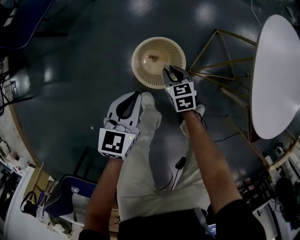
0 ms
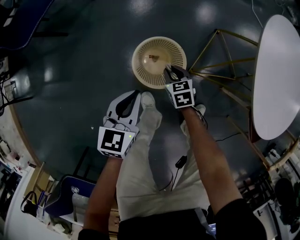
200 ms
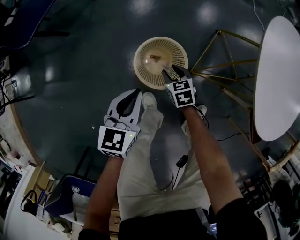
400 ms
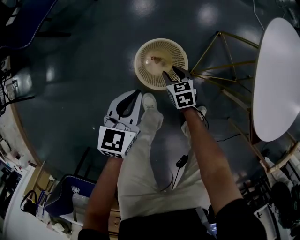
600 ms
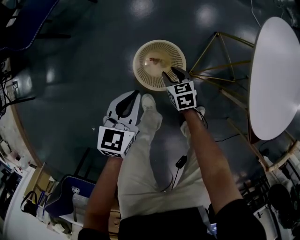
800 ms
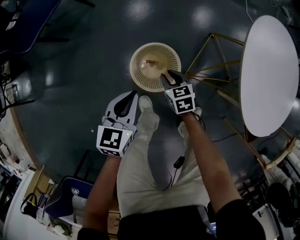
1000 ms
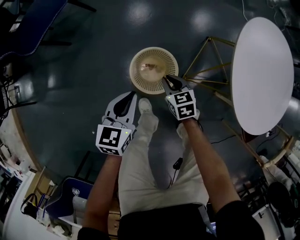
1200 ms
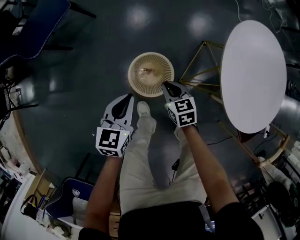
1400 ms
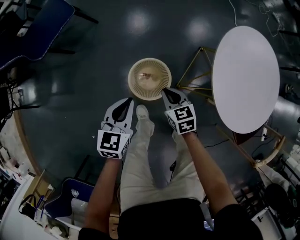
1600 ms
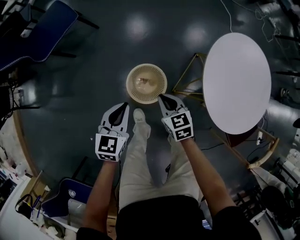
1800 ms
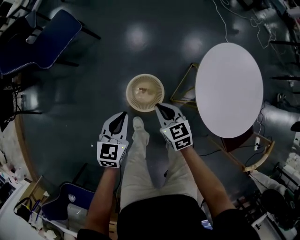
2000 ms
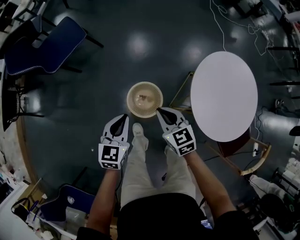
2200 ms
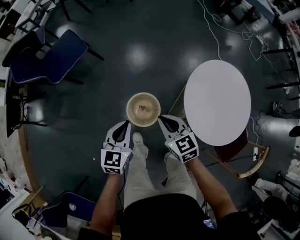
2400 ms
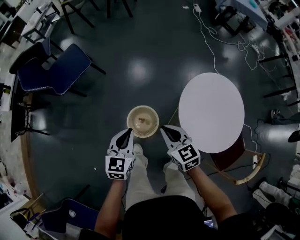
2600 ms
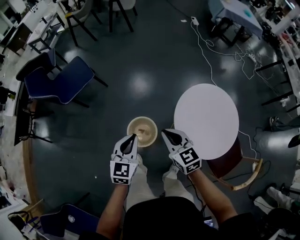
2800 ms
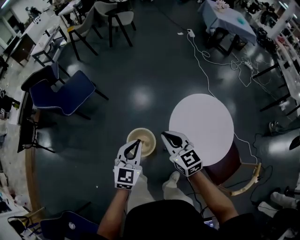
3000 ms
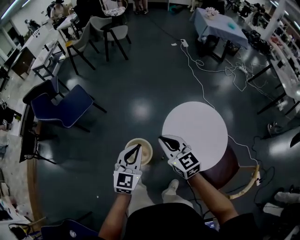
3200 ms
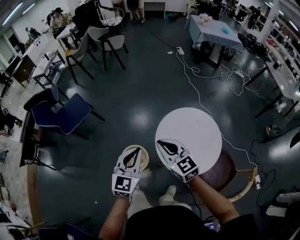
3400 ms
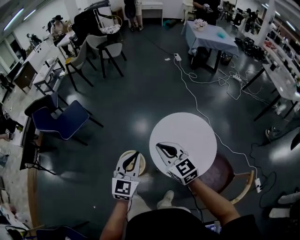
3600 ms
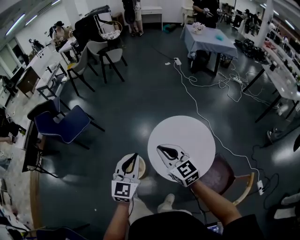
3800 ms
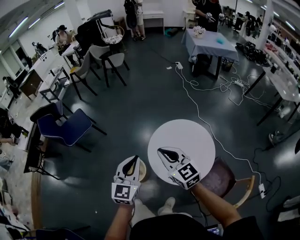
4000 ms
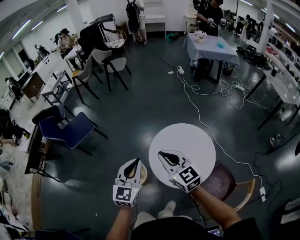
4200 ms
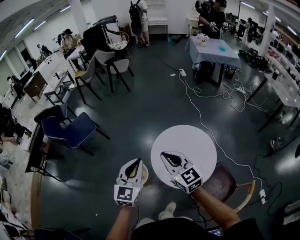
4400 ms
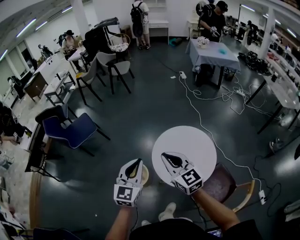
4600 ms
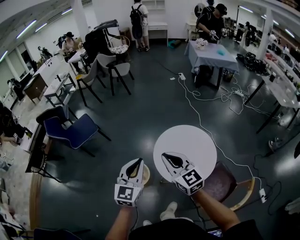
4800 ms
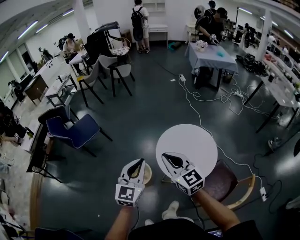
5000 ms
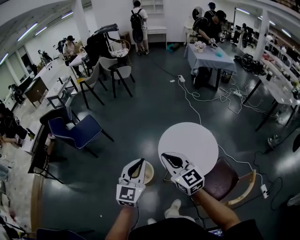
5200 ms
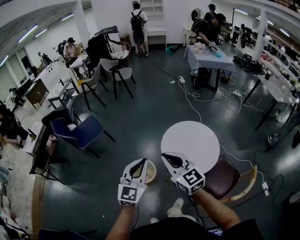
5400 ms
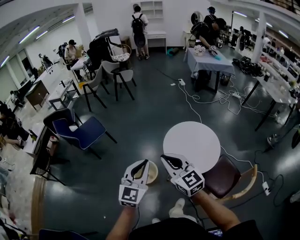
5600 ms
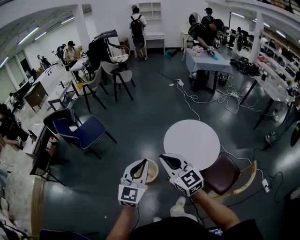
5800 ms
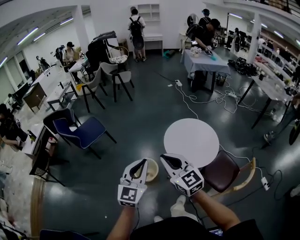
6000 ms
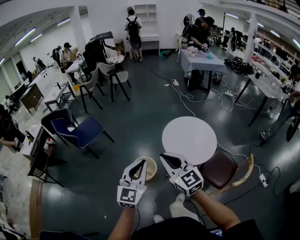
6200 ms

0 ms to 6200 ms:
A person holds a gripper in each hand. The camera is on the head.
0 ms to 1600 ms: The two grippers go approximately 15 cm upward. The right gripper opens, then closes once more.
1600 ms to 3200 ms: The right gripper heads upward, covering approximately 50 cm, and rotates roughly 30 degrees; the left gripper travels upward and to the right by roughly 50 cm, and swivels about 30 degrees.
3200 ms to 4600 ms: The grippers both shift to the right, backward and upward by roughly 20 cm.
4600 ms to 6200 ms: Both grippers travel together backward and to the left, roughly 30 cm.

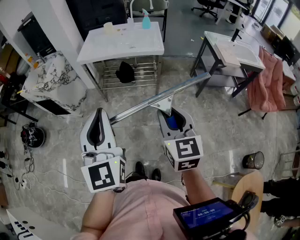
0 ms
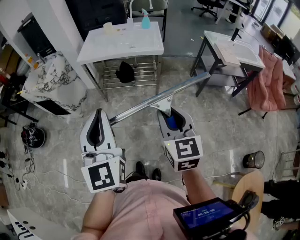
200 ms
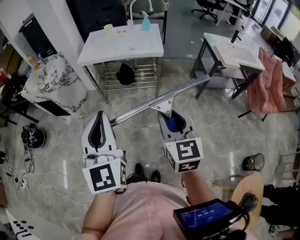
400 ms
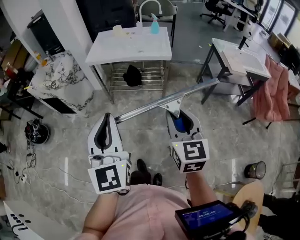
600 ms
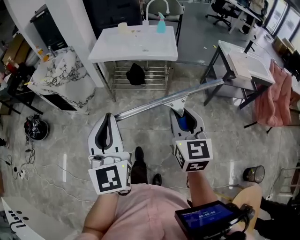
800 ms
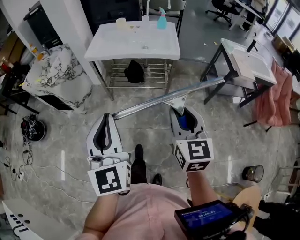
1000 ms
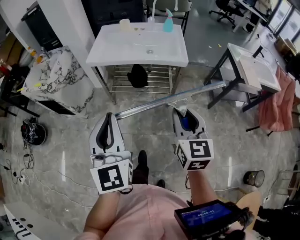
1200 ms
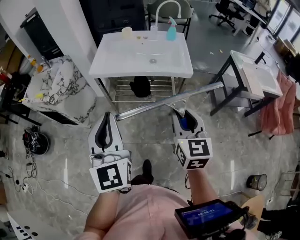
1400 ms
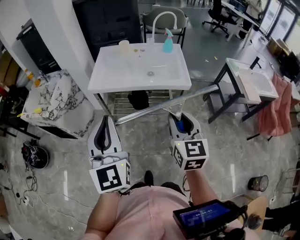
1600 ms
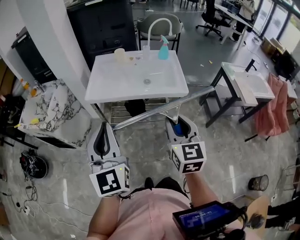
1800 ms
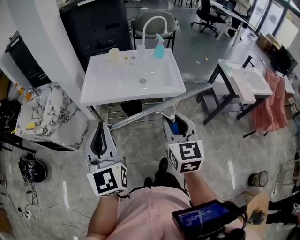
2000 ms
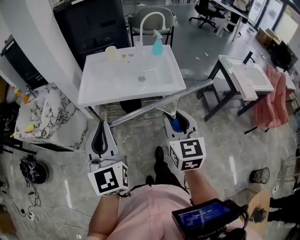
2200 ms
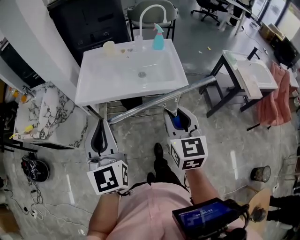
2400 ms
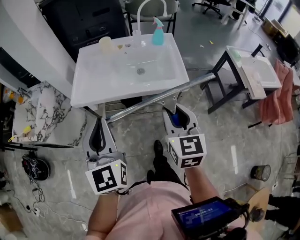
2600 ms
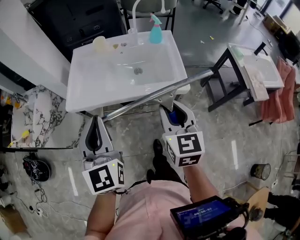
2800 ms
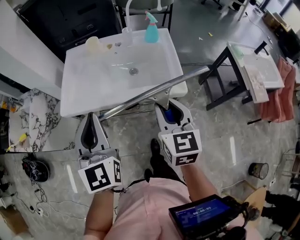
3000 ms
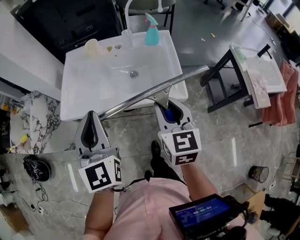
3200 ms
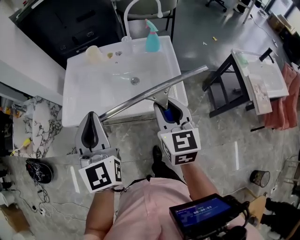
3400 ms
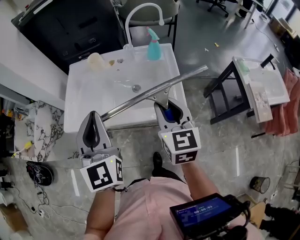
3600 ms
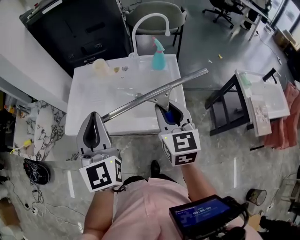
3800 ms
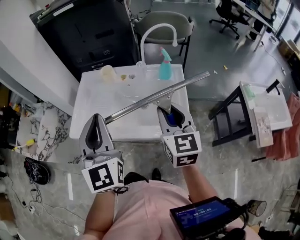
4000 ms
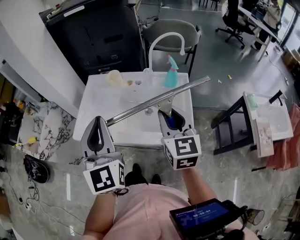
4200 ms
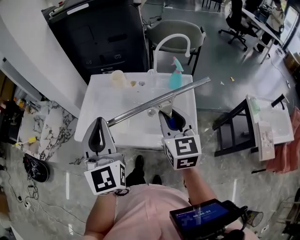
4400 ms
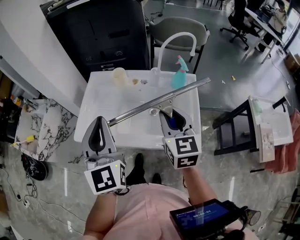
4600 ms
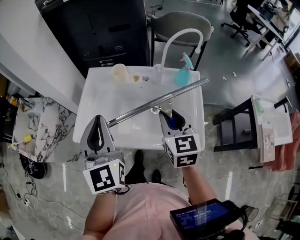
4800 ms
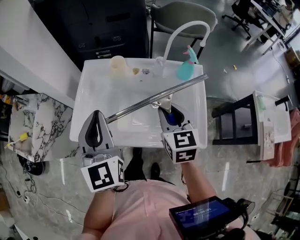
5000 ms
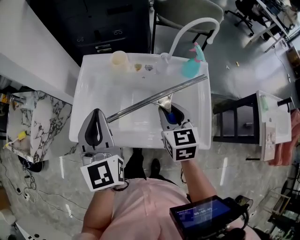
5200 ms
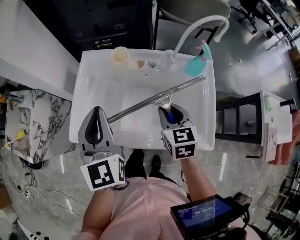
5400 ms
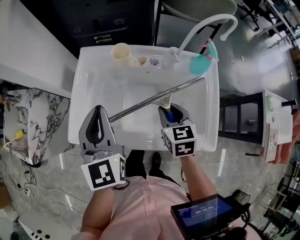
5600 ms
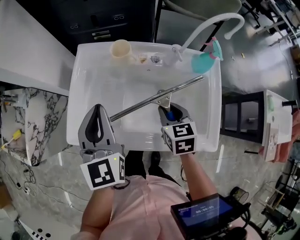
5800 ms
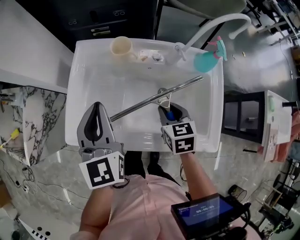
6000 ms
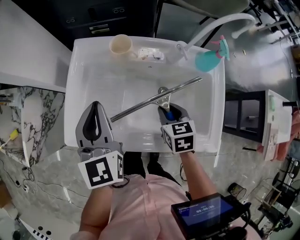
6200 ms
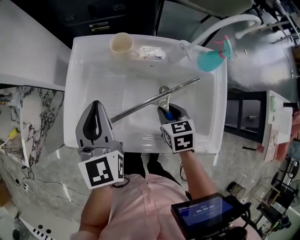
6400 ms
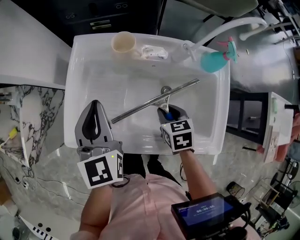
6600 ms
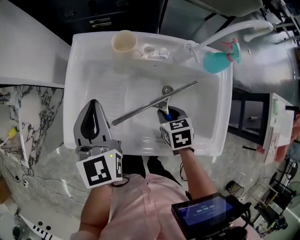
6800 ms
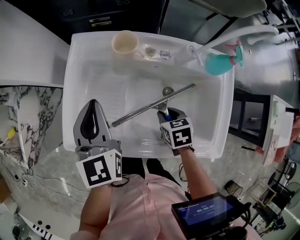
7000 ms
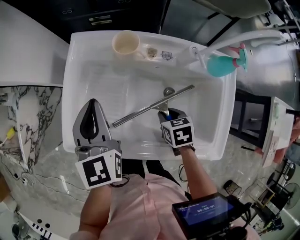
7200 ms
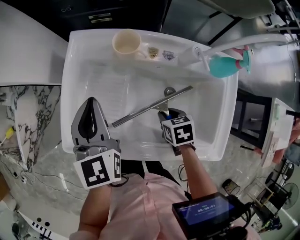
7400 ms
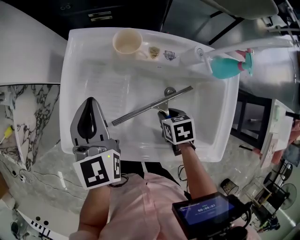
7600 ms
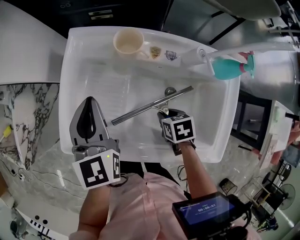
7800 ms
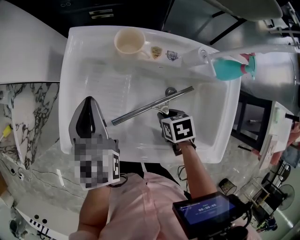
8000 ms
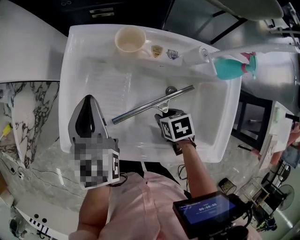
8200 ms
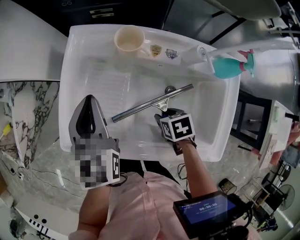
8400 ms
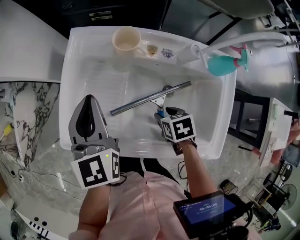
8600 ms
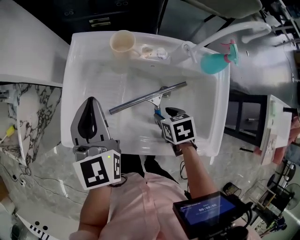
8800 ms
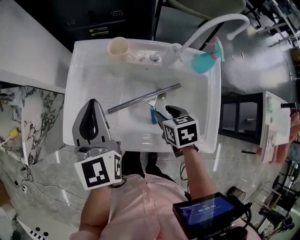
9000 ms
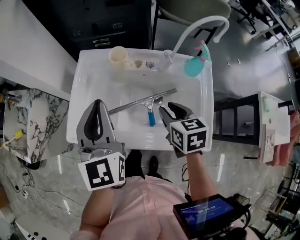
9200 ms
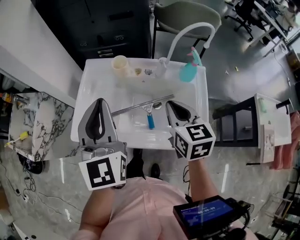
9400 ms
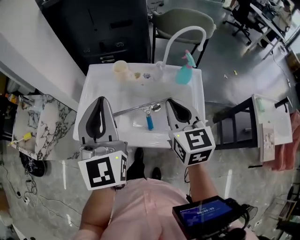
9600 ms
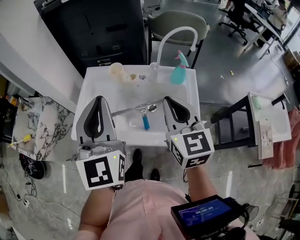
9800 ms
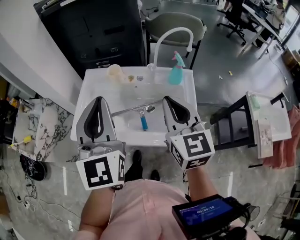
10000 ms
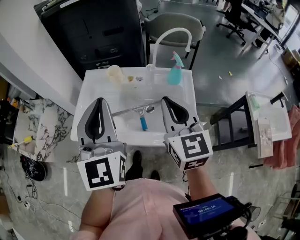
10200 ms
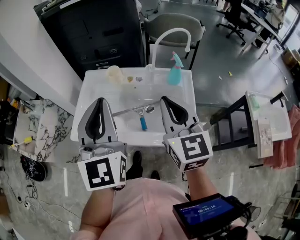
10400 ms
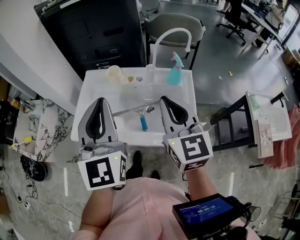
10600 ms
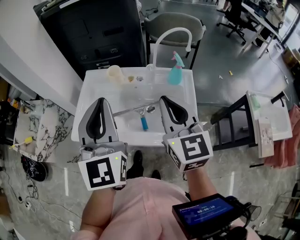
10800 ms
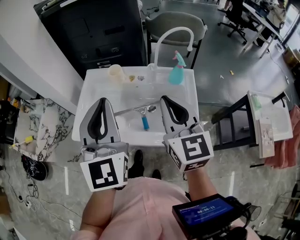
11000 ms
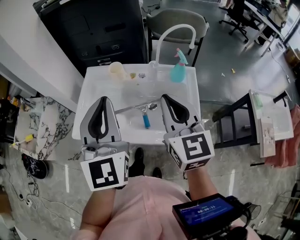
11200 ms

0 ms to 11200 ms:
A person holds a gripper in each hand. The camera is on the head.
0 ms to 1600 ms: The grippers both shift forward by approximately 30 cm.
1600 ms to 3200 ms: The two grippers go about 25 cm forward.
3200 ms to 4800 ms: The grippers both shift forward by some 15 cm.
4800 ms to 6400 ms: The left gripper moves downward and forward, about 20 cm. The right gripper moves downward, some 20 cm, and rotates approximately 30 degrees.
6400 ms to 8000 ms: The right gripper moves downward, approximately 10 cm, and changes its angle by roughly 30 degrees, while the left gripper shifts approximately 5 cm forward.
8000 ms to 9600 ms: The right gripper is displaced upward by approximately 35 cm, tips its fingers upward by roughly 50 degrees, and closes its fingers. Meanwhile the left gripper goes roughly 25 cm upward, and rotates approximately 30 degrees.
9600 ms to 11200 ms: The right gripper is displaced upward by approximately 5 cm.

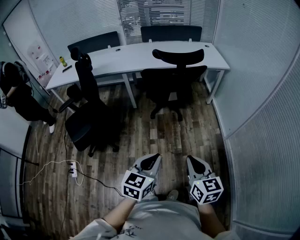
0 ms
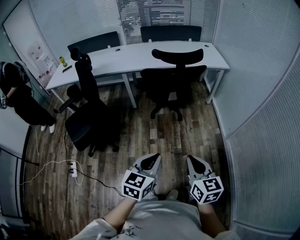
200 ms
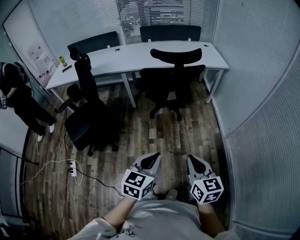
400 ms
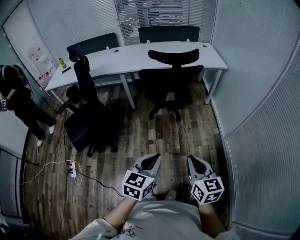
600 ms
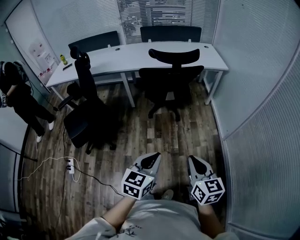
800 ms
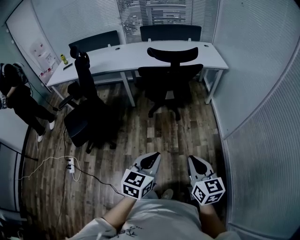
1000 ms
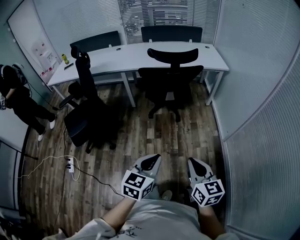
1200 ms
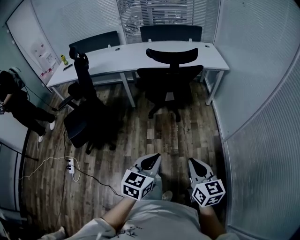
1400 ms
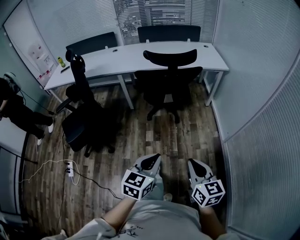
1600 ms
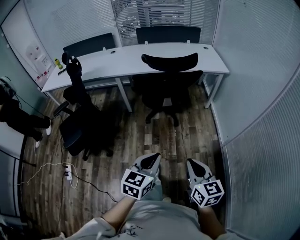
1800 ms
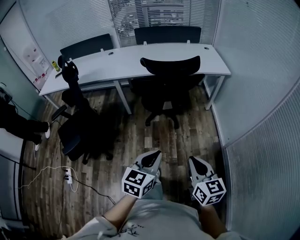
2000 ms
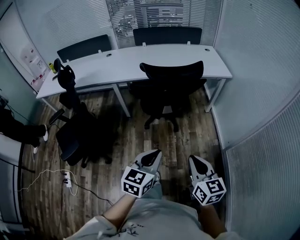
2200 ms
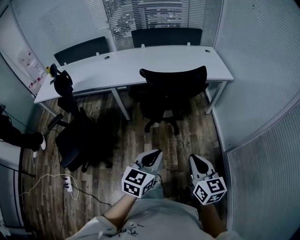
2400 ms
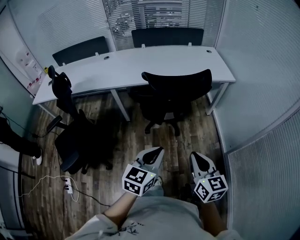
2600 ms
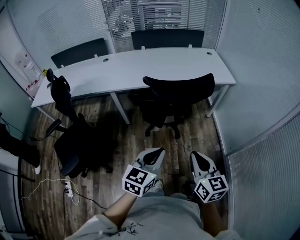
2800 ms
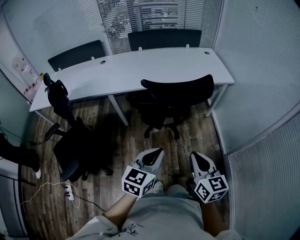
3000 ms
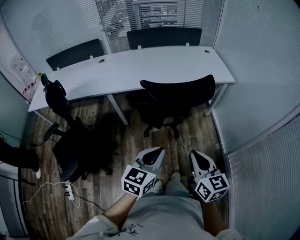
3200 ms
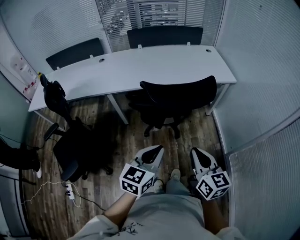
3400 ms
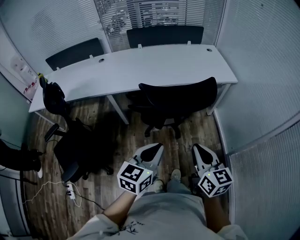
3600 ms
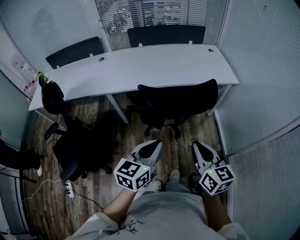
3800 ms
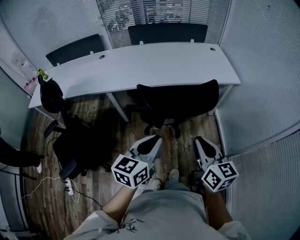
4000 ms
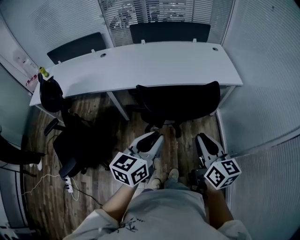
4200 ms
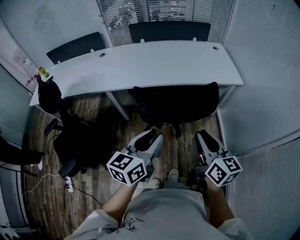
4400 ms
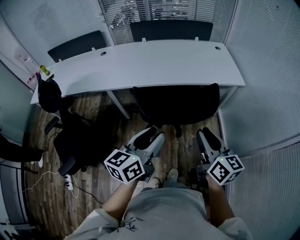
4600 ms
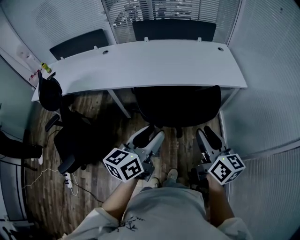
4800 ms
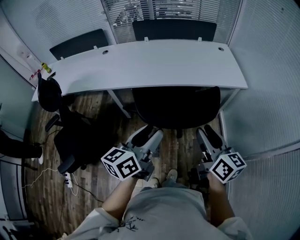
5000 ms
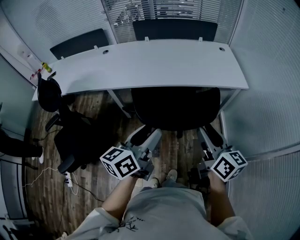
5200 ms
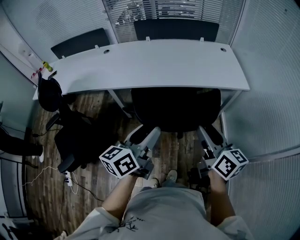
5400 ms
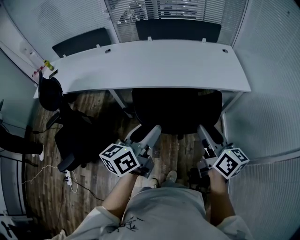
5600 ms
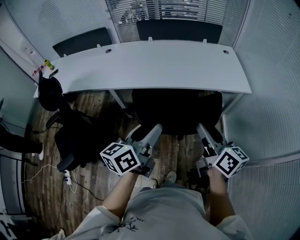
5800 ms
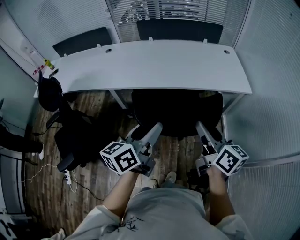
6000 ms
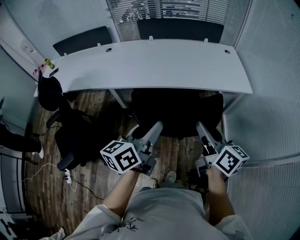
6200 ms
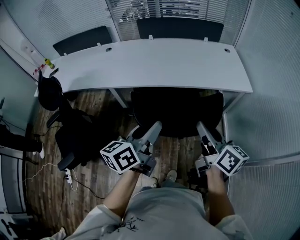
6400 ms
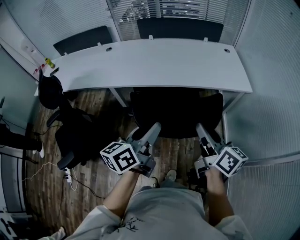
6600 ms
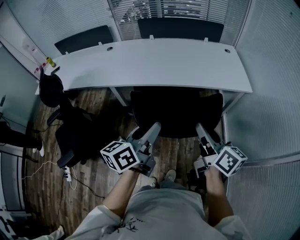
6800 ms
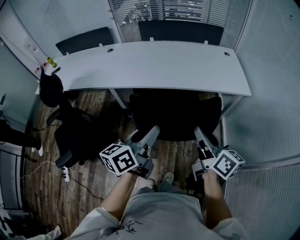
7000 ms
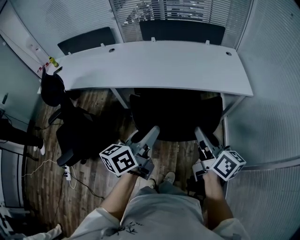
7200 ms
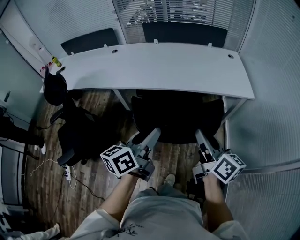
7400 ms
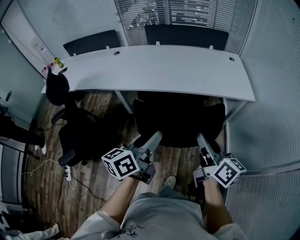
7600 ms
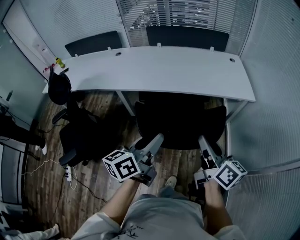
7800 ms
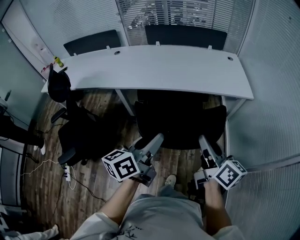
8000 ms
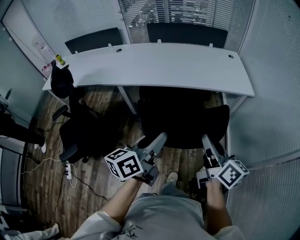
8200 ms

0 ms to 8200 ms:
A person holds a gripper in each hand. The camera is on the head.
0 ms to 1600 ms: The grippers both shift to the right by some 5 cm.
1600 ms to 3200 ms: Both grippers travel together forward, some 30 cm.
3200 ms to 5000 ms: Both grippers travel together forward, roughly 15 cm. The left gripper rotates about 30 degrees, and opens. Meanwhile the right gripper opens its fingers.
5000 ms to 6600 ms: The grippers move only a little.
6600 ms to 8200 ms: Both grippers travel together backward, about 10 cm.
